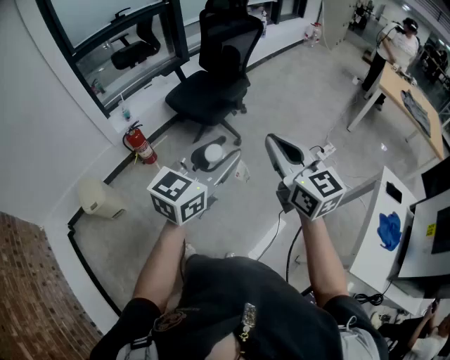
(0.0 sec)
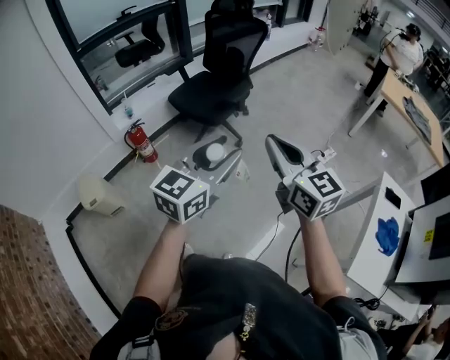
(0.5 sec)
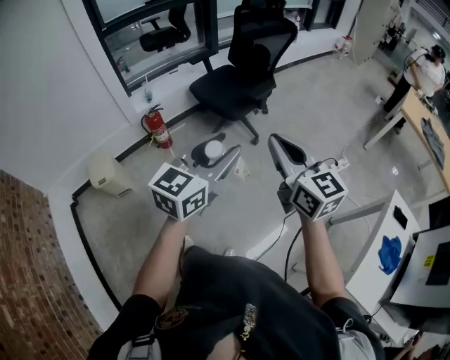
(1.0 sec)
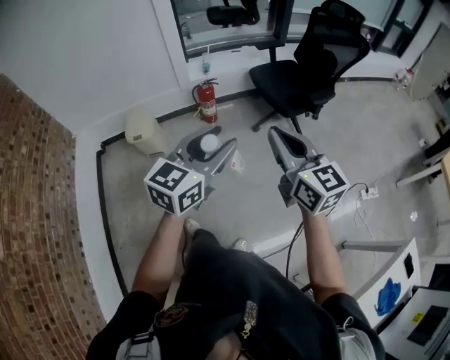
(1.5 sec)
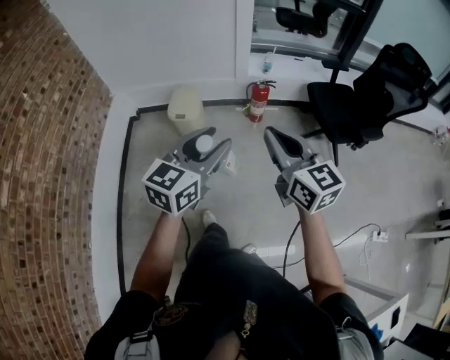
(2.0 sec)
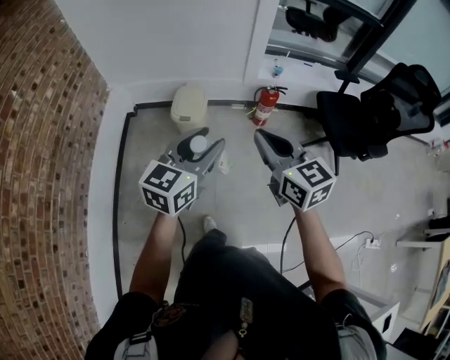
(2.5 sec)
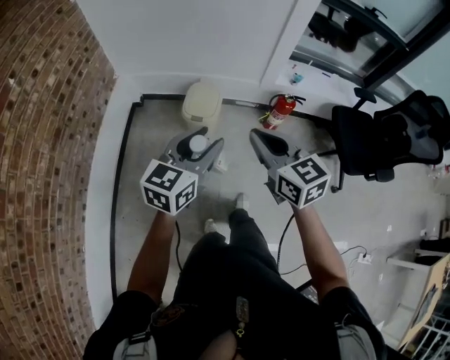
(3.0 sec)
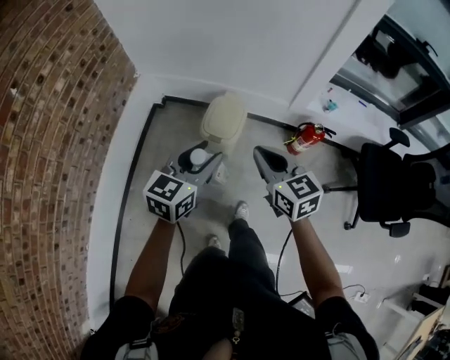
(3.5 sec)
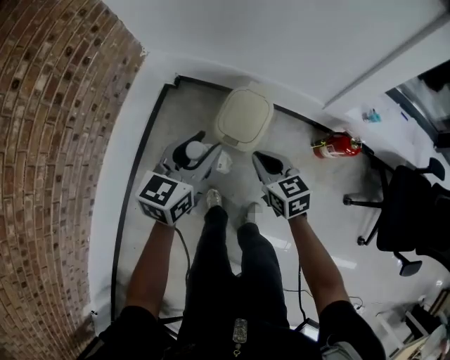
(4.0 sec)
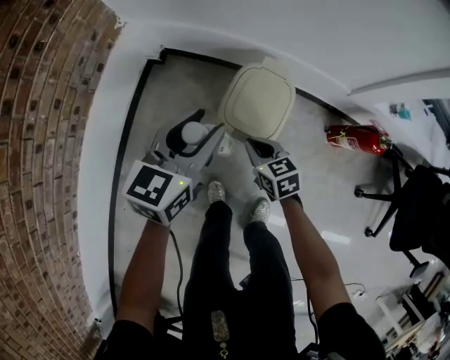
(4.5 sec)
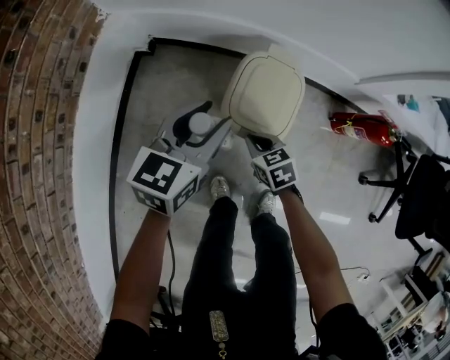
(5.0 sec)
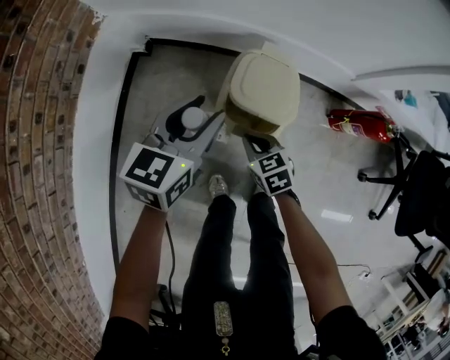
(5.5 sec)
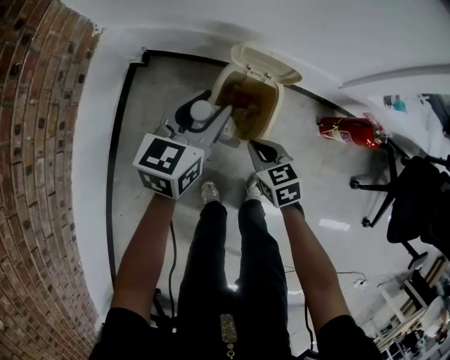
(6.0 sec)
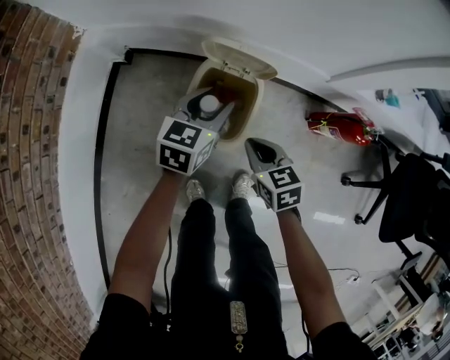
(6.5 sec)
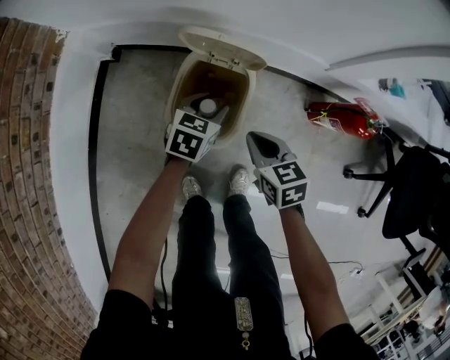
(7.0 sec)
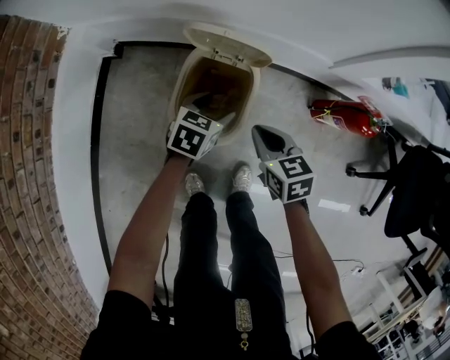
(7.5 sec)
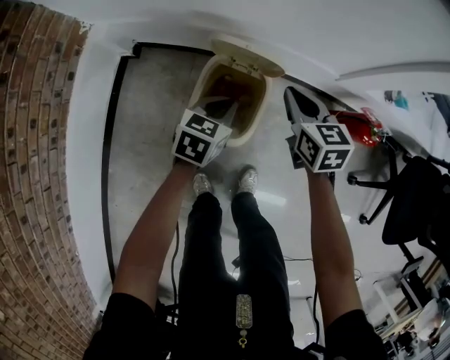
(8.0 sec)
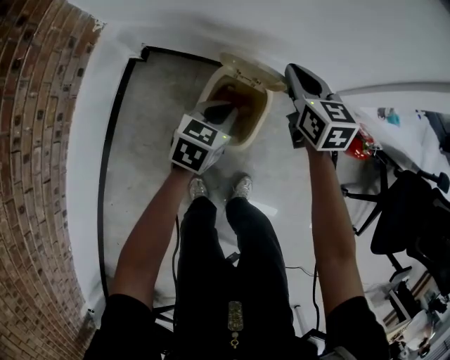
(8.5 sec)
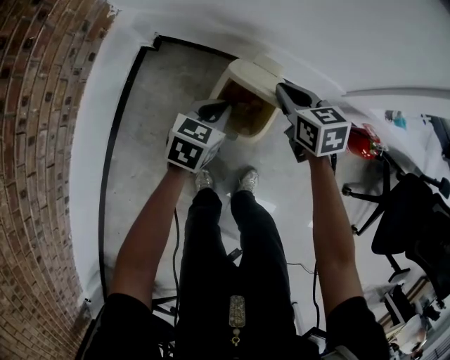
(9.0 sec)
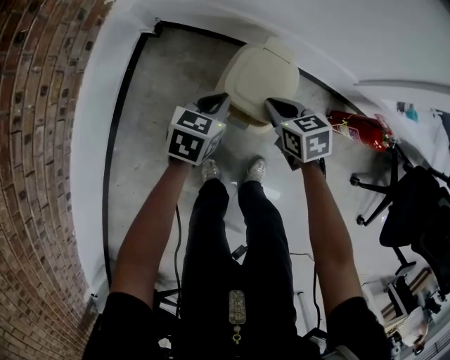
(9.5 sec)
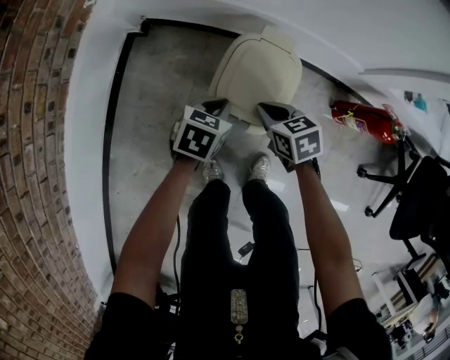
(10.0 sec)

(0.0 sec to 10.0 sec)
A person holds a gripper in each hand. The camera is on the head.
0.0 sec - 2.0 sec: The left gripper moves roughly 40 cm, and rotates some 50 degrees. The right gripper ends up approximately 40 cm from where it was, and swivels some 50 degrees.
2.0 sec - 4.0 sec: The pair of grippers is taken roughly 50 cm. The left gripper swivels roughly 30 degrees; the right gripper swivels approximately 40 degrees.
4.0 sec - 6.0 sec: The right gripper is displaced downward by approximately 20 cm, while the left gripper is displaced downward and forward by approximately 25 cm.
6.0 sec - 8.0 sec: The right gripper travels forward, to the right and upward by roughly 20 cm, while the left gripper travels downward and to the right by about 15 cm, changes its angle by about 20 degrees, and closes its fingers.
8.0 sec - 10.0 sec: The left gripper moves to the left and downward, roughly 10 cm. The right gripper heads to the left, downward and backward, covering some 20 cm, and swivels about 30 degrees.

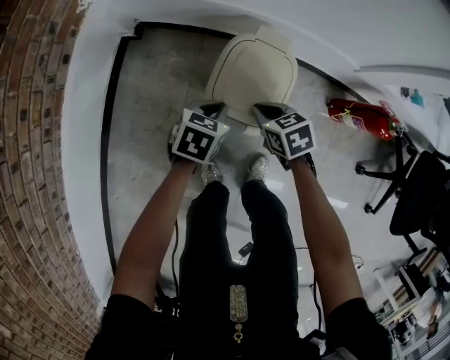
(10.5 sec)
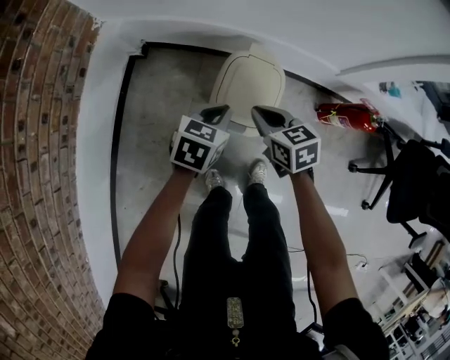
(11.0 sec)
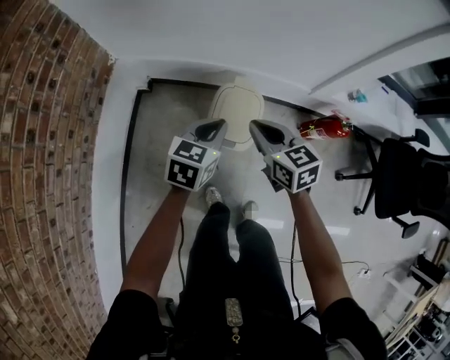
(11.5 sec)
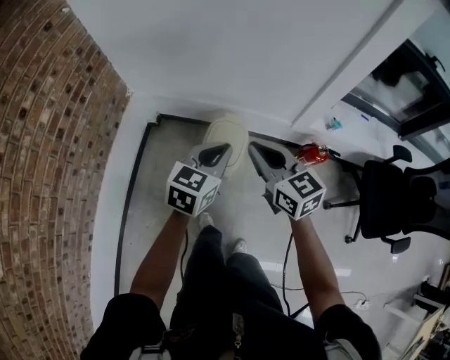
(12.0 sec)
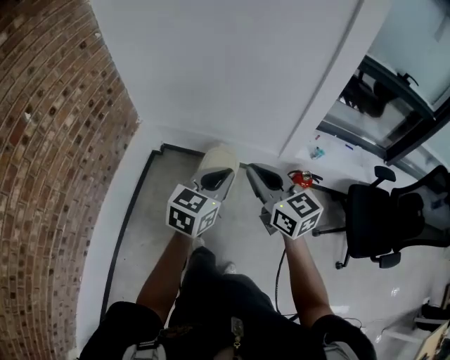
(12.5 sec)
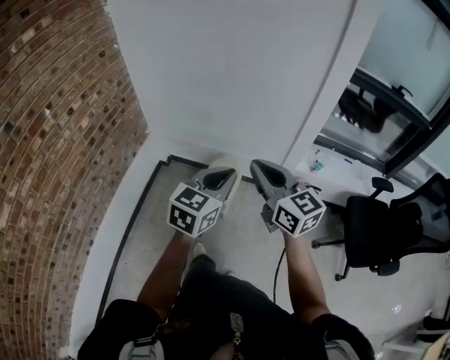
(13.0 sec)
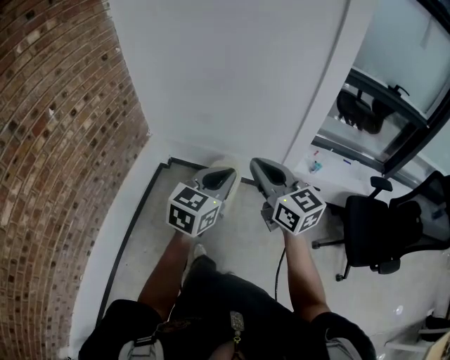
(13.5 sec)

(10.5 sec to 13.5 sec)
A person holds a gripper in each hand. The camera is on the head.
10.5 sec - 12.0 sec: Both grippers travel together upward, roughly 50 cm. The right gripper points its fingers some 40 degrees further upward, while the left gripper tips its fingers upward by about 30 degrees.
12.0 sec - 13.5 sec: The grippers both shift upward and backward by about 20 cm.

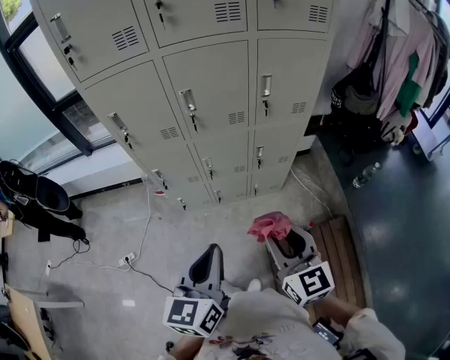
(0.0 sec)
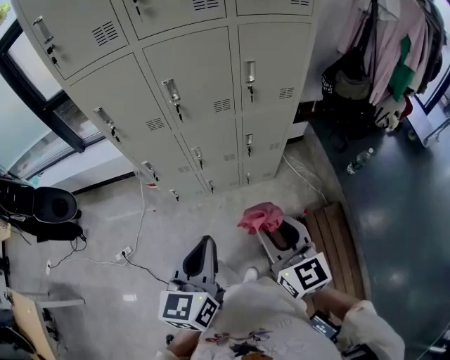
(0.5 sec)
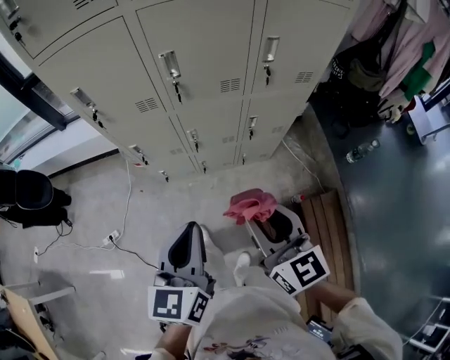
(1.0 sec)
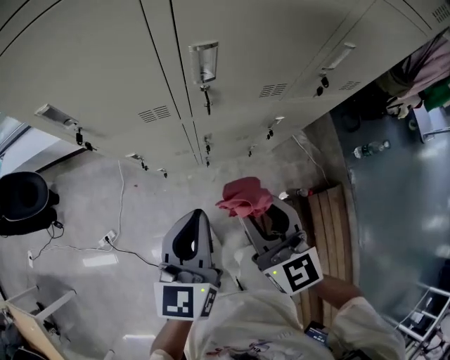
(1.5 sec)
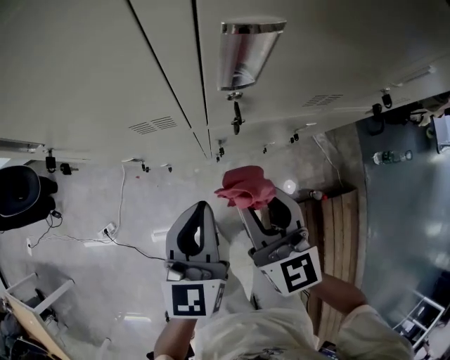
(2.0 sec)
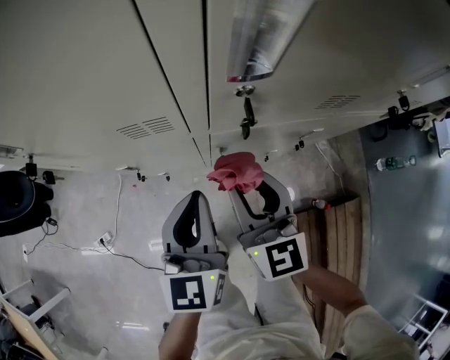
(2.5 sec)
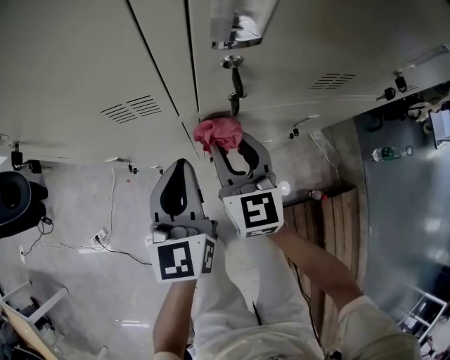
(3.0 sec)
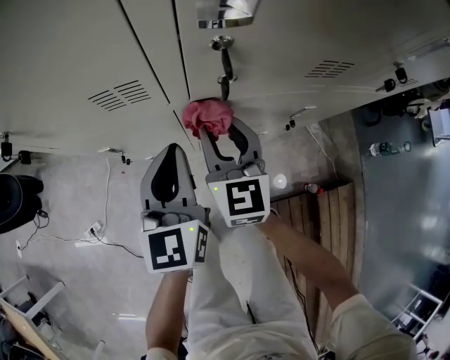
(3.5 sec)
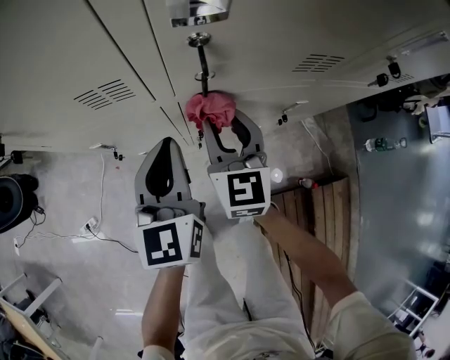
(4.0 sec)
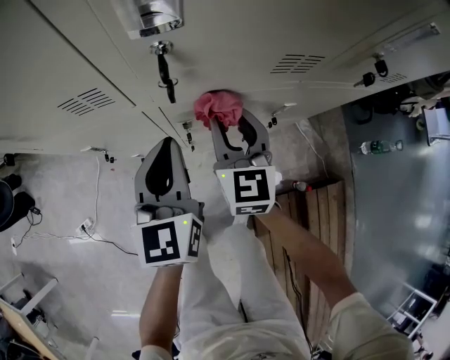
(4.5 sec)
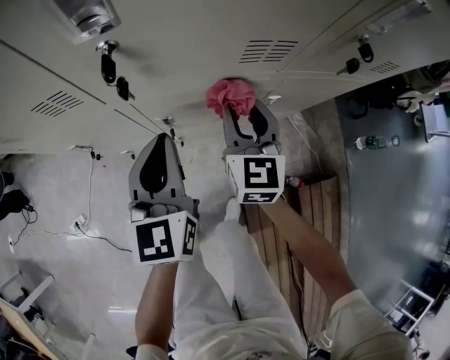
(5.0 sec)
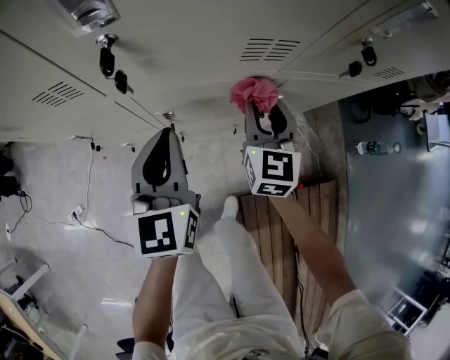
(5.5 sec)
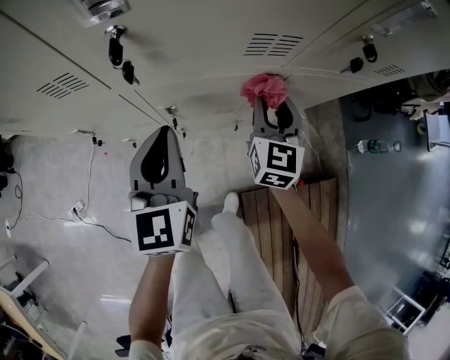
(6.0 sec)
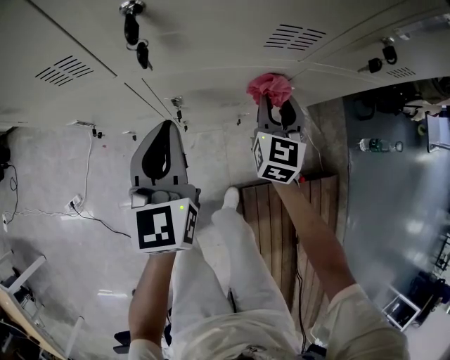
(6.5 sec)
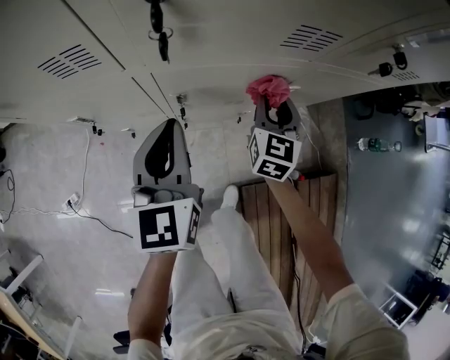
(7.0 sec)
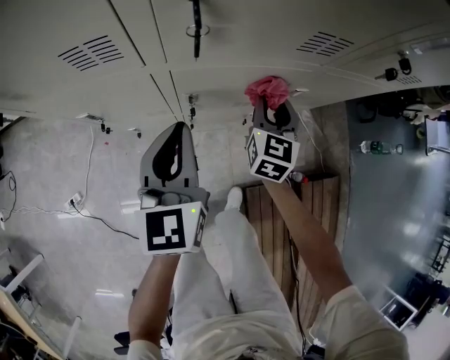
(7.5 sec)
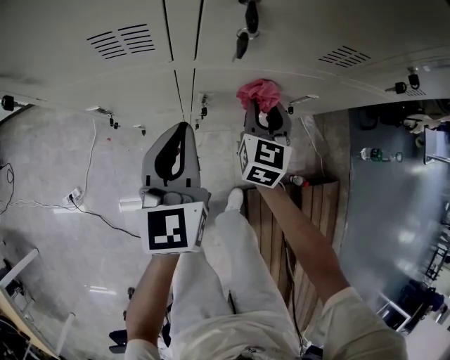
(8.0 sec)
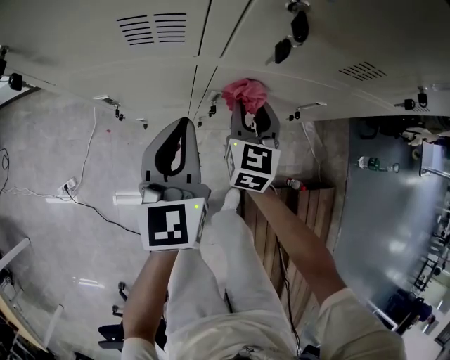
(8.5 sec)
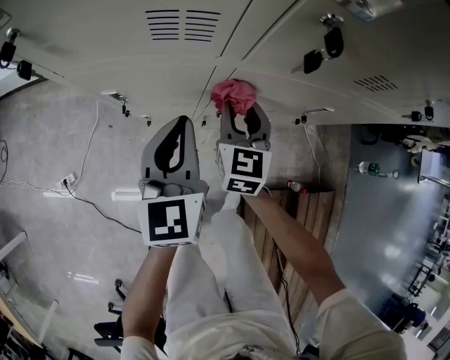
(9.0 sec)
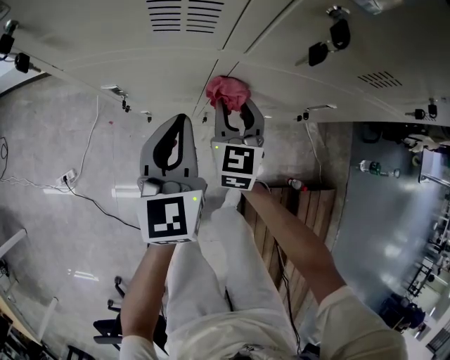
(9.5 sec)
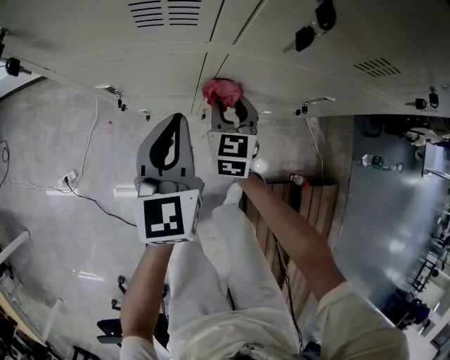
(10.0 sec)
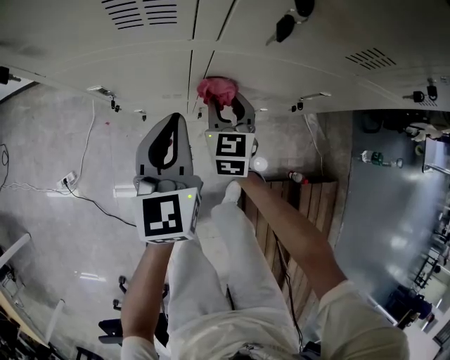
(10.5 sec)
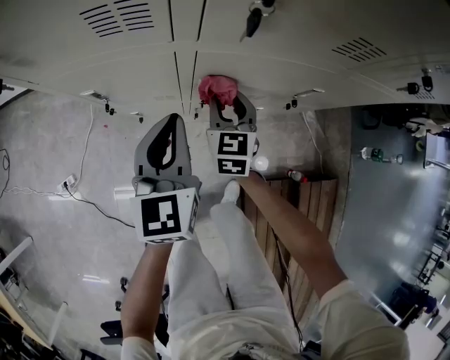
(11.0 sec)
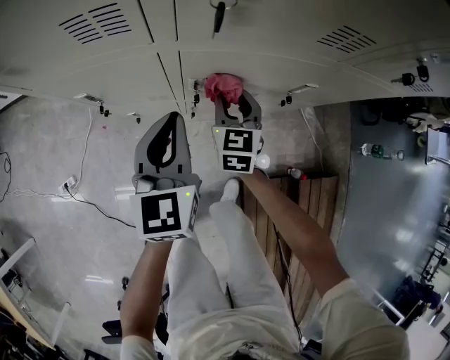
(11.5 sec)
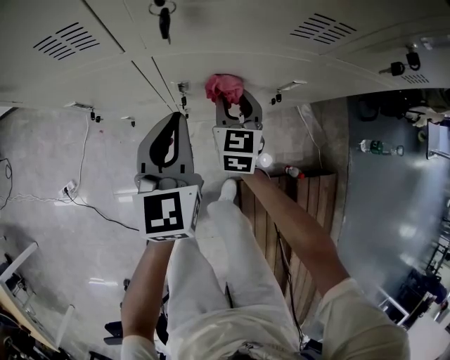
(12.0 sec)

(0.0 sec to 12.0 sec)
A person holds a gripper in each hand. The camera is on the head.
0.0 sec - 2.0 sec: The right gripper moves forward, downward and to the left, approximately 40 cm. Meanwhile the left gripper shifts about 40 cm forward and downward.
2.0 sec - 4.0 sec: The right gripper moves downward and forward, some 15 cm. Meanwhile the left gripper moves forward and downward, about 10 cm.
4.0 sec - 6.0 sec: The left gripper is displaced to the right by approximately 10 cm; the right gripper goes approximately 20 cm to the right.
6.0 sec - 8.0 sec: The right gripper goes approximately 10 cm to the left and downward. The left gripper goes about 5 cm to the left.
8.0 sec - 10.0 sec: The right gripper moves to the left and downward, roughly 15 cm; the left gripper travels to the left by roughly 5 cm.
10.0 sec - 12.0 sec: The two grippers go approximately 10 cm to the right.

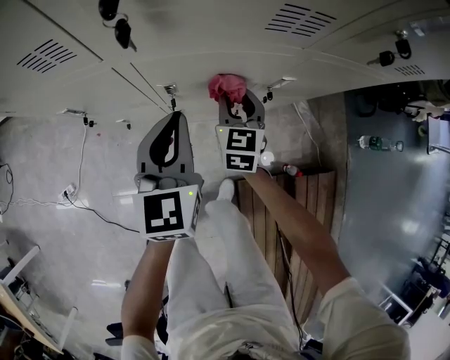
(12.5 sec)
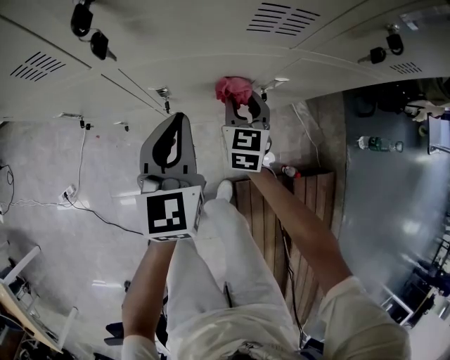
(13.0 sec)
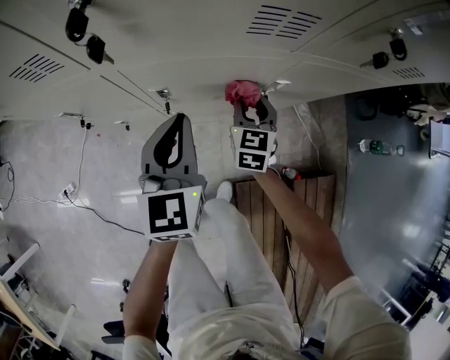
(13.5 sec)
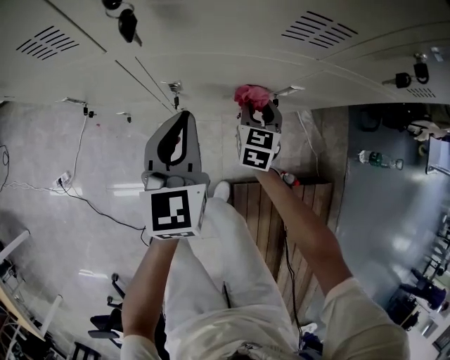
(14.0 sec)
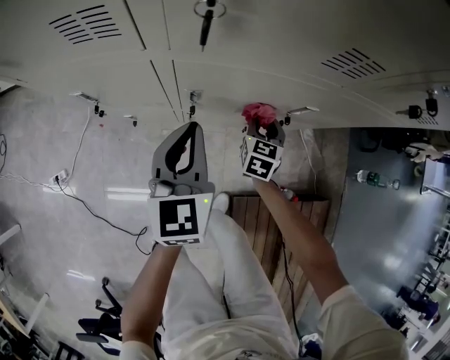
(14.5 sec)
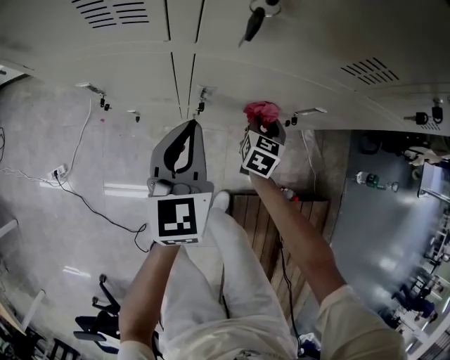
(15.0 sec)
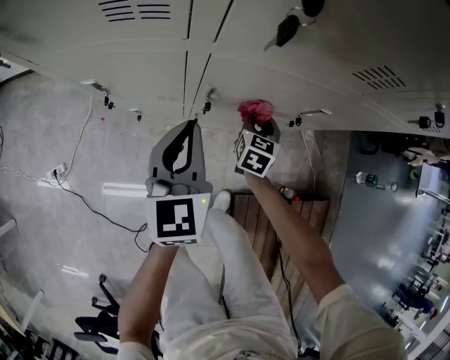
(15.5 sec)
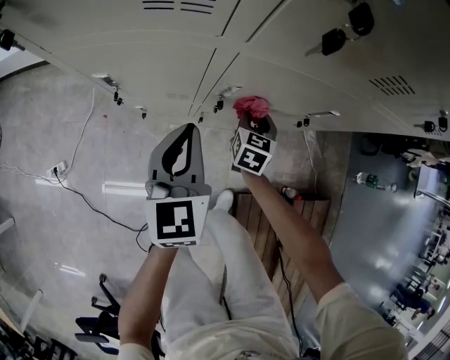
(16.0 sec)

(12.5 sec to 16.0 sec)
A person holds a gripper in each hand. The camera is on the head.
12.5 sec - 14.5 sec: The right gripper travels downward by roughly 10 cm.
14.5 sec - 16.0 sec: Both grippers move to the left, roughly 10 cm.
